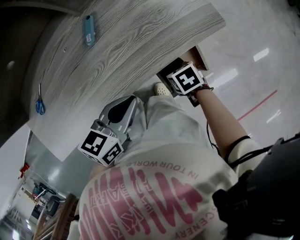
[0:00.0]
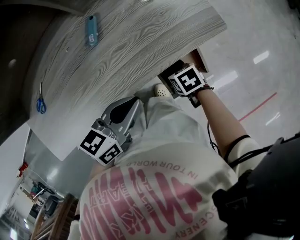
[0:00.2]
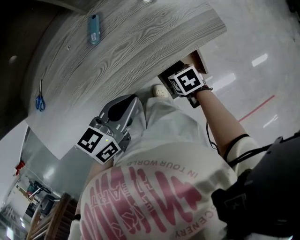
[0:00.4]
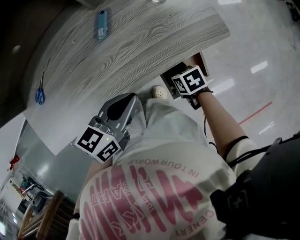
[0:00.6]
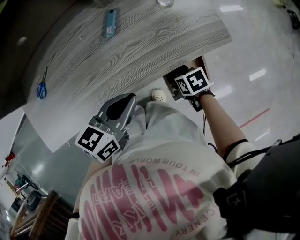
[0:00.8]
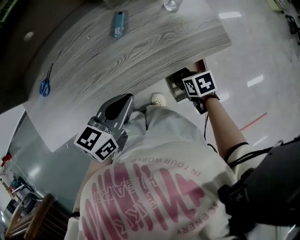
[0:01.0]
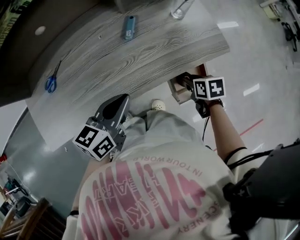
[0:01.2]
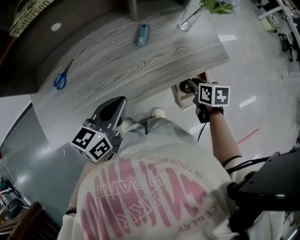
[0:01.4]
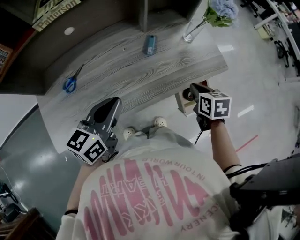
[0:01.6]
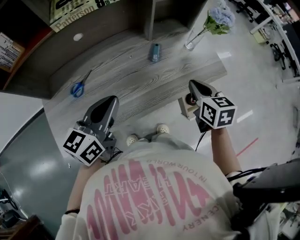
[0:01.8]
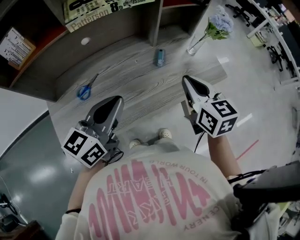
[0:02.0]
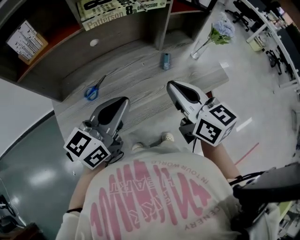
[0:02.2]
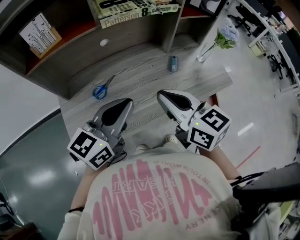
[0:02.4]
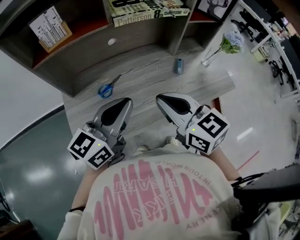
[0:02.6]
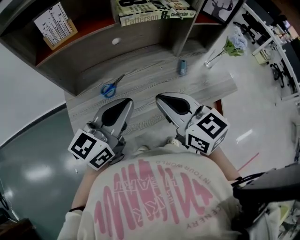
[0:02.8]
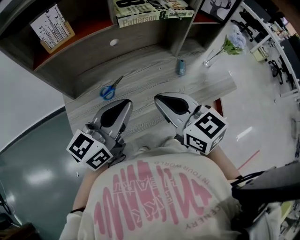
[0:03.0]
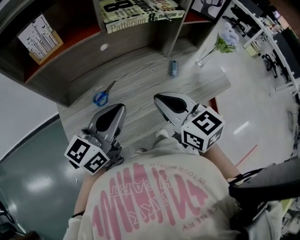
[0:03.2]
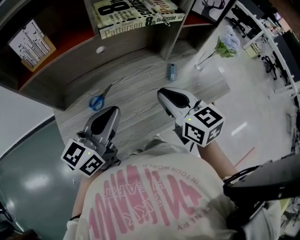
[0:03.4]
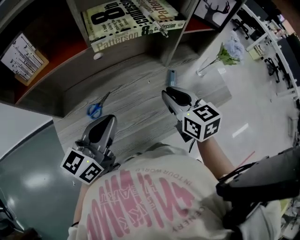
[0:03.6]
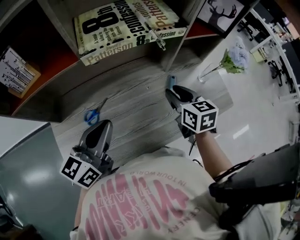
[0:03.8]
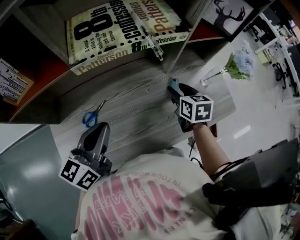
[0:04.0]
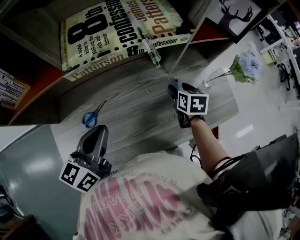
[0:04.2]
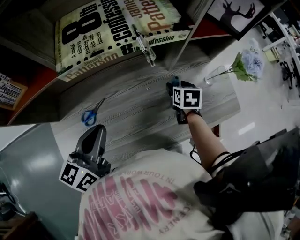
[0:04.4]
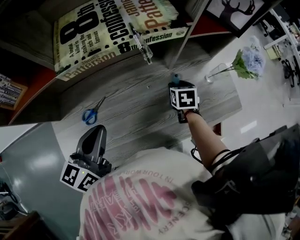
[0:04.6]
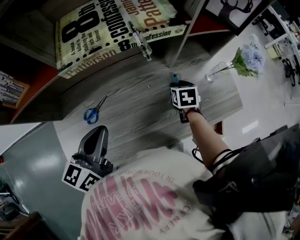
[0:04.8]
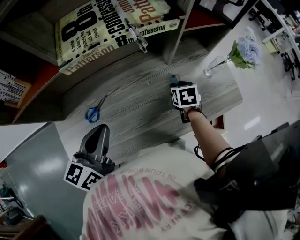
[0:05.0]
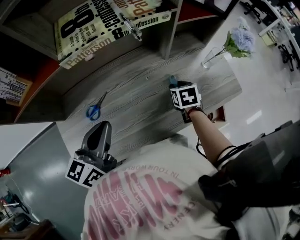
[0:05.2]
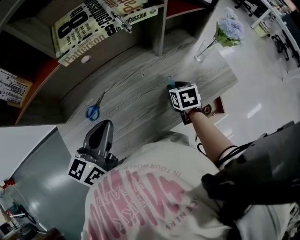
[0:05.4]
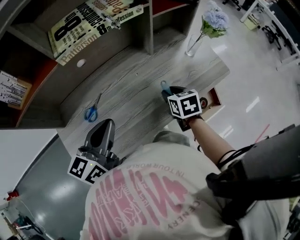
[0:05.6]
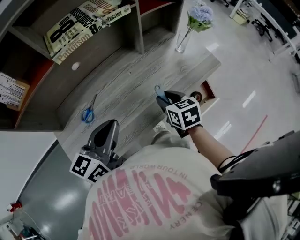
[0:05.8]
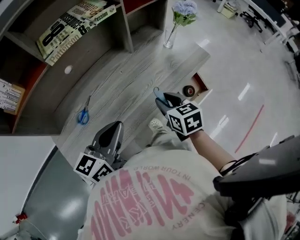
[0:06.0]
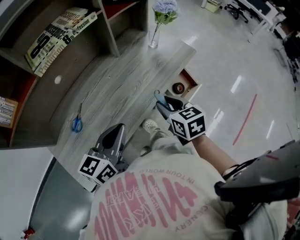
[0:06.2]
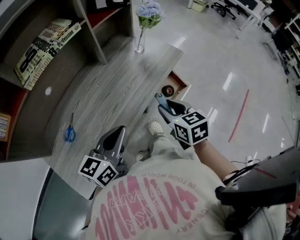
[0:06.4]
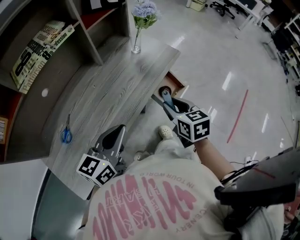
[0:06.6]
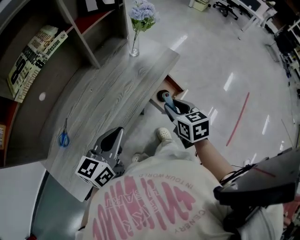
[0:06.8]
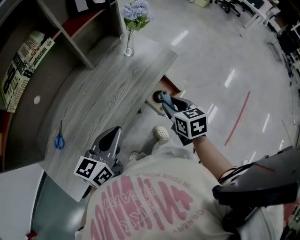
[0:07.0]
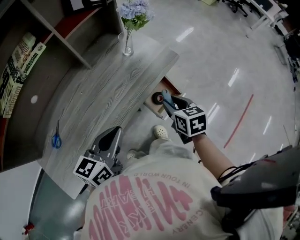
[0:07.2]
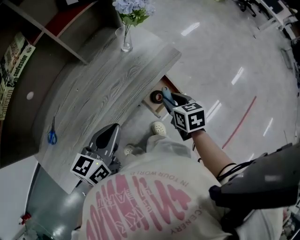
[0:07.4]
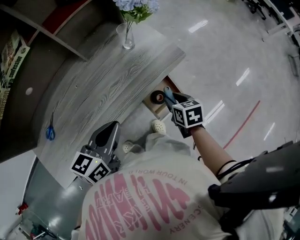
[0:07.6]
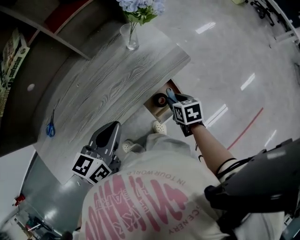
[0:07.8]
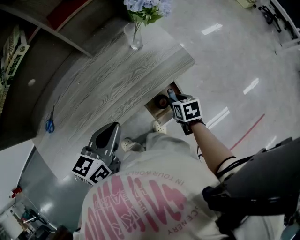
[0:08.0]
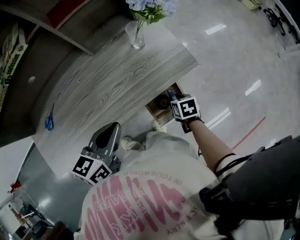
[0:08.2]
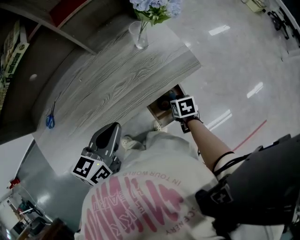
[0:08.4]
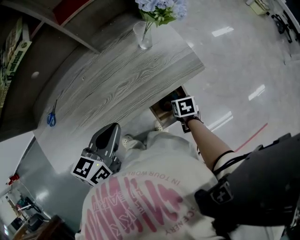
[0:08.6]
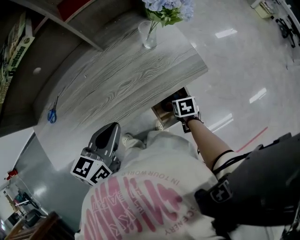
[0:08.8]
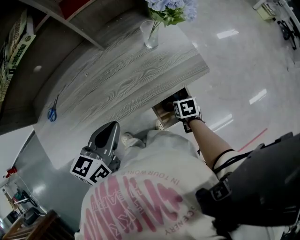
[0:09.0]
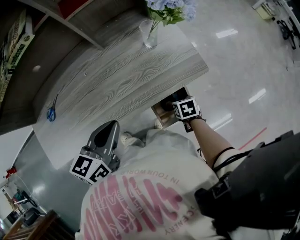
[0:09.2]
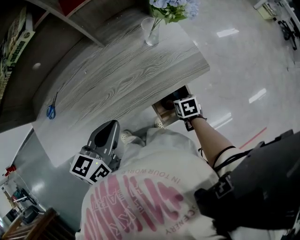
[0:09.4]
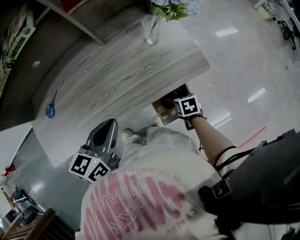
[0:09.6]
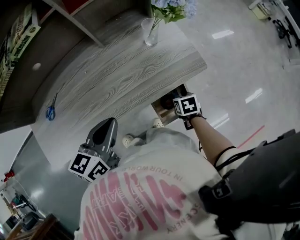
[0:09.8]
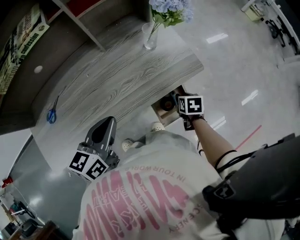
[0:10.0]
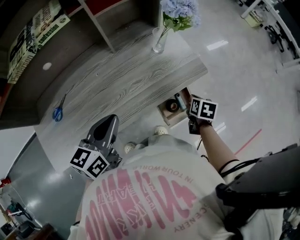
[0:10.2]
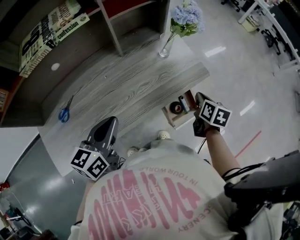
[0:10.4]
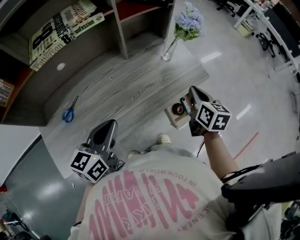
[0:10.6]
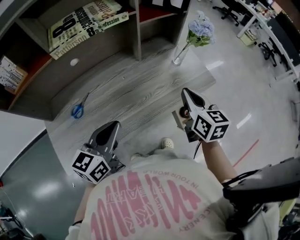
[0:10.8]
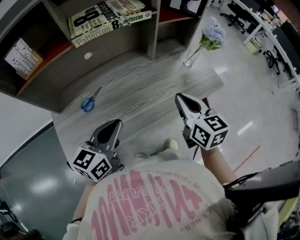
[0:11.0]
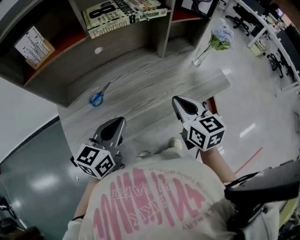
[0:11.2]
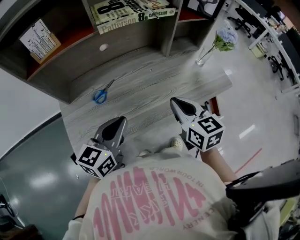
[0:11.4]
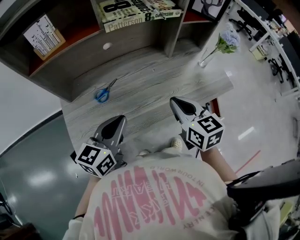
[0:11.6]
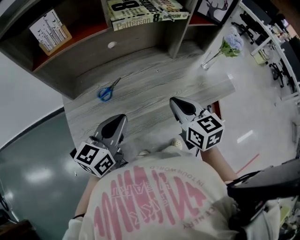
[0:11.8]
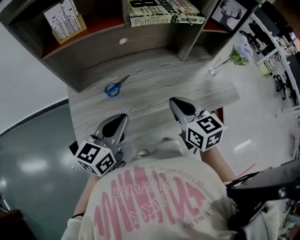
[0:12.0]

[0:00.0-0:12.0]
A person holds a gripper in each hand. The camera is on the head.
0:00.0 to 0:01.6: The right gripper heads upward, covering about 20 cm, changes its angle by about 30 degrees, and closes up. Meanwhile the left gripper travels to the left and upward by about 25 cm, and swivels some 30 degrees.
0:01.6 to 0:03.0: The right gripper moves to the left and upward, approximately 40 cm, and angles its fingers upward, by about 30 degrees; the left gripper goes some 20 cm to the left and upward.
0:03.0 to 0:04.4: The right gripper is displaced forward, downward and to the right by about 40 cm, points its fingers about 40 degrees further downward, and opens up. Meanwhile the left gripper is displaced forward and downward by some 15 cm, and rotates approximately 20 degrees.
0:04.4 to 0:06.0: The left gripper is displaced backward and to the right by approximately 15 cm, and swivels roughly 30 degrees. Meanwhile the right gripper travels backward by roughly 25 cm, and closes up.
0:06.0 to 0:07.6: The right gripper goes about 25 cm to the right and downward; the left gripper heads to the right and forward, covering approximately 20 cm.
0:07.6 to 0:09.0: The right gripper is displaced downward by roughly 15 cm, and changes its angle by approximately 20 degrees.
0:09.0 to 0:10.4: The right gripper goes roughly 20 cm upward, turns by about 40 degrees, and closes up. Meanwhile the left gripper moves to the left, about 10 cm.
0:10.4 to 0:12.0: The right gripper heads to the left, covering about 40 cm, and swivels about 50 degrees; the left gripper shifts roughly 25 cm to the left and backward.

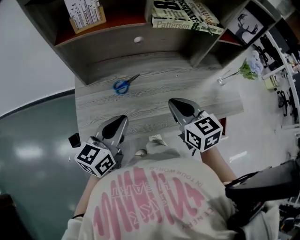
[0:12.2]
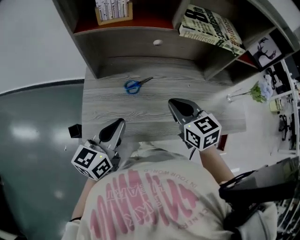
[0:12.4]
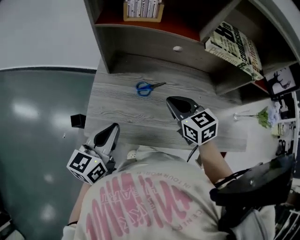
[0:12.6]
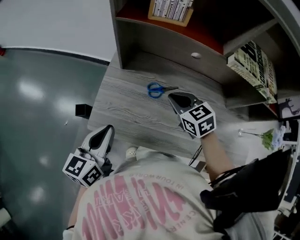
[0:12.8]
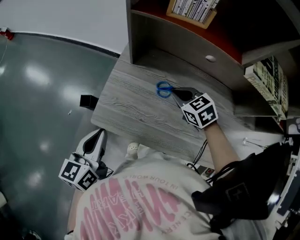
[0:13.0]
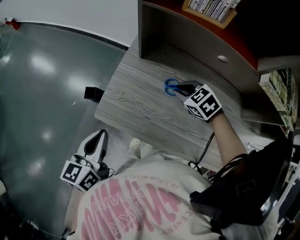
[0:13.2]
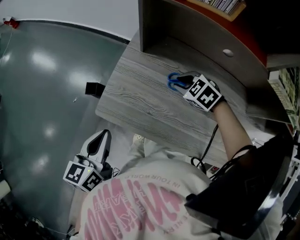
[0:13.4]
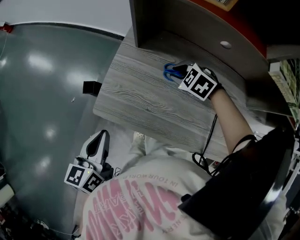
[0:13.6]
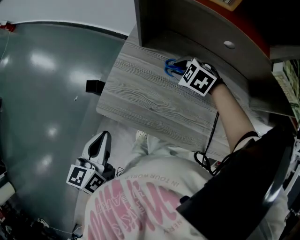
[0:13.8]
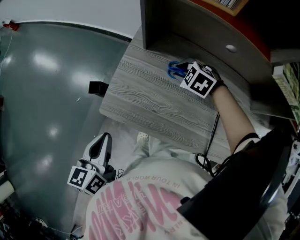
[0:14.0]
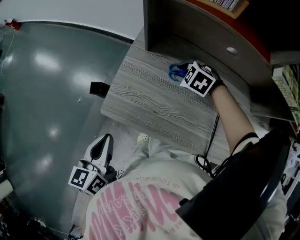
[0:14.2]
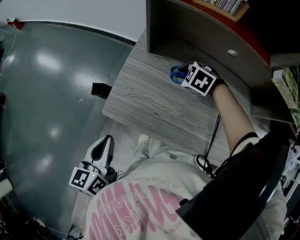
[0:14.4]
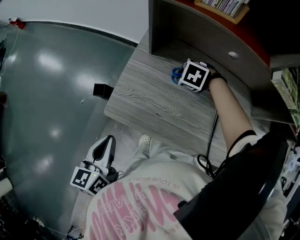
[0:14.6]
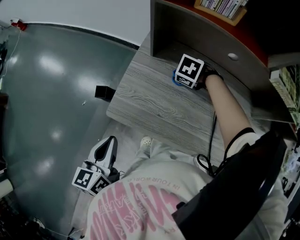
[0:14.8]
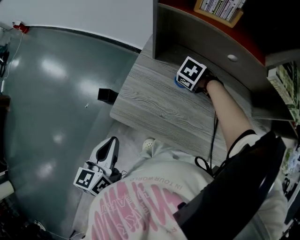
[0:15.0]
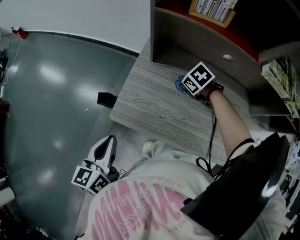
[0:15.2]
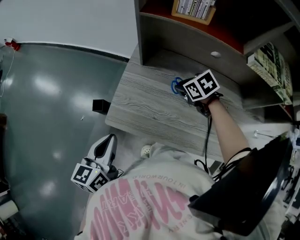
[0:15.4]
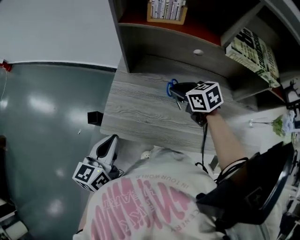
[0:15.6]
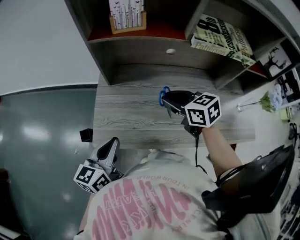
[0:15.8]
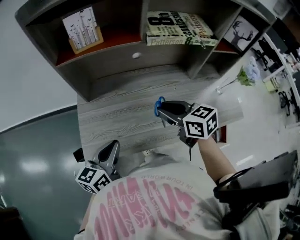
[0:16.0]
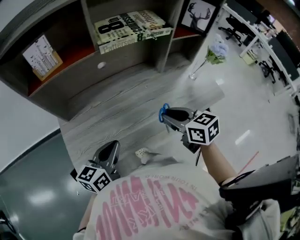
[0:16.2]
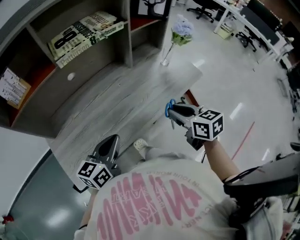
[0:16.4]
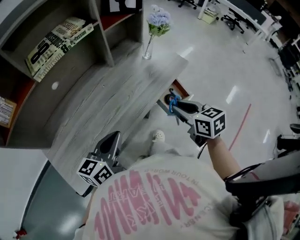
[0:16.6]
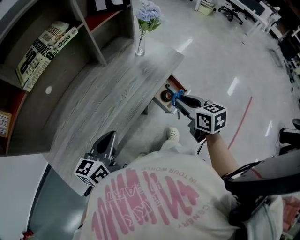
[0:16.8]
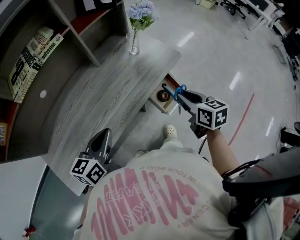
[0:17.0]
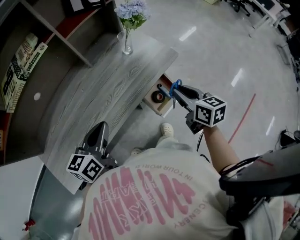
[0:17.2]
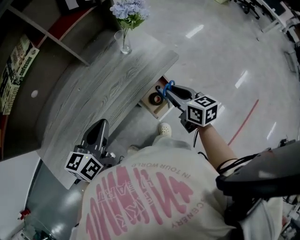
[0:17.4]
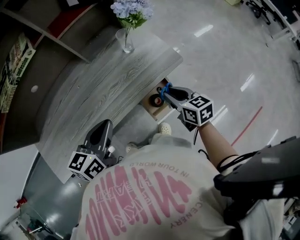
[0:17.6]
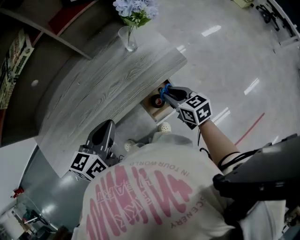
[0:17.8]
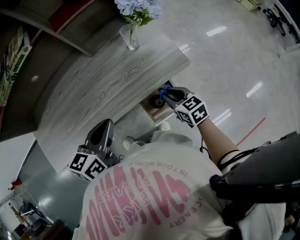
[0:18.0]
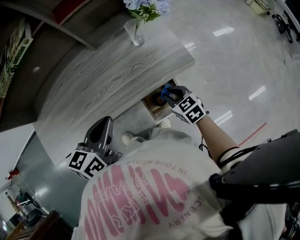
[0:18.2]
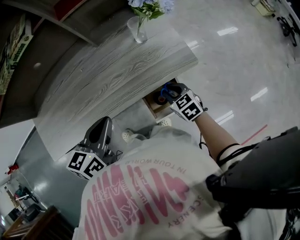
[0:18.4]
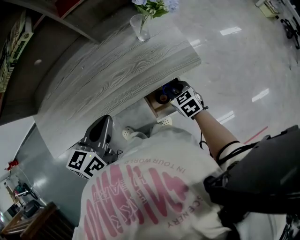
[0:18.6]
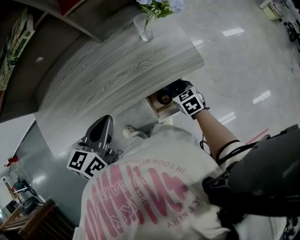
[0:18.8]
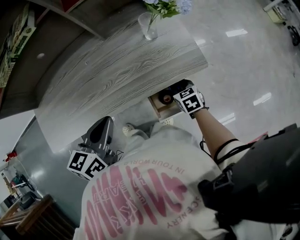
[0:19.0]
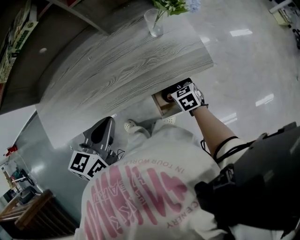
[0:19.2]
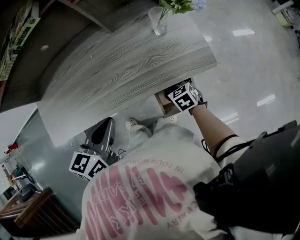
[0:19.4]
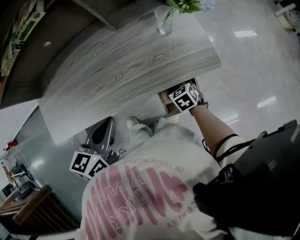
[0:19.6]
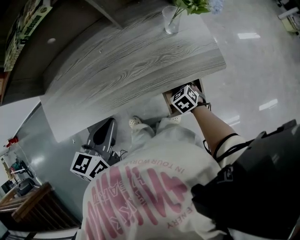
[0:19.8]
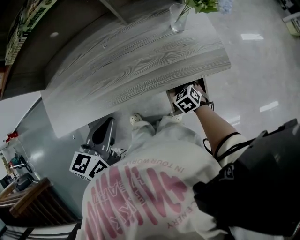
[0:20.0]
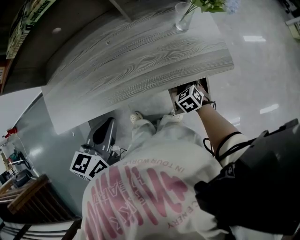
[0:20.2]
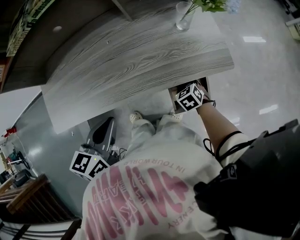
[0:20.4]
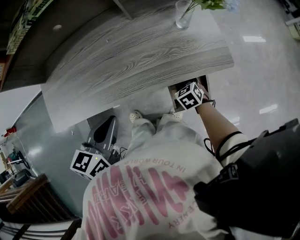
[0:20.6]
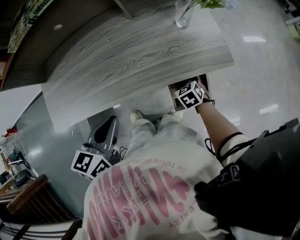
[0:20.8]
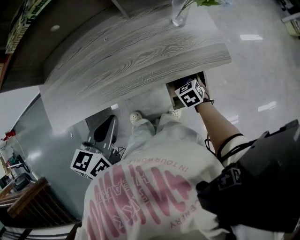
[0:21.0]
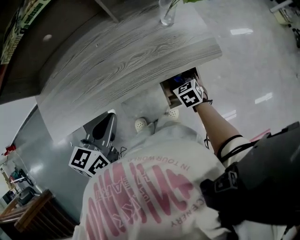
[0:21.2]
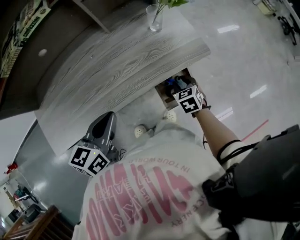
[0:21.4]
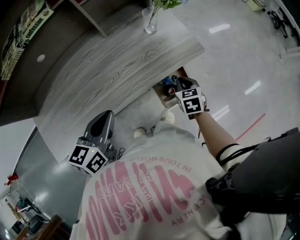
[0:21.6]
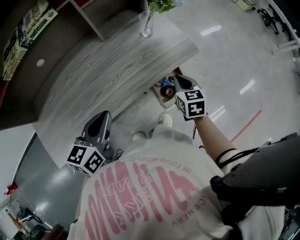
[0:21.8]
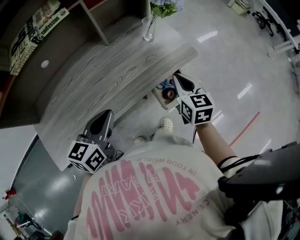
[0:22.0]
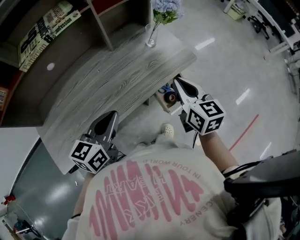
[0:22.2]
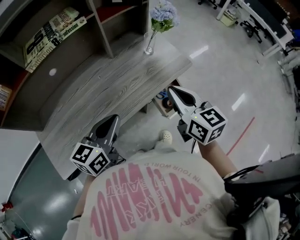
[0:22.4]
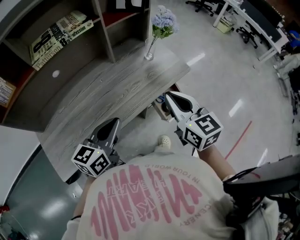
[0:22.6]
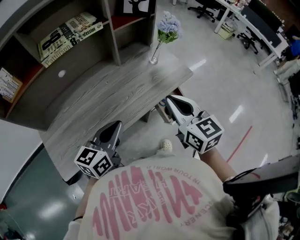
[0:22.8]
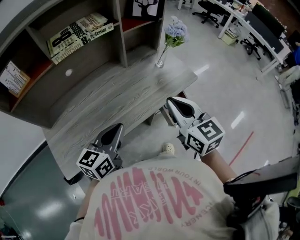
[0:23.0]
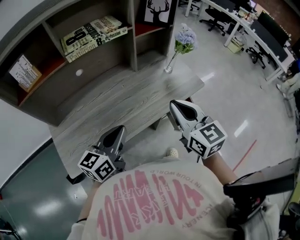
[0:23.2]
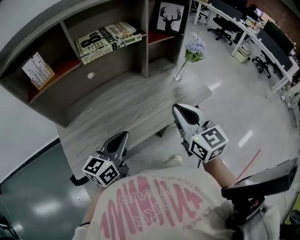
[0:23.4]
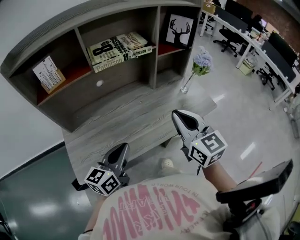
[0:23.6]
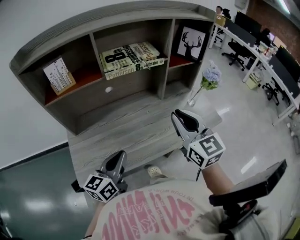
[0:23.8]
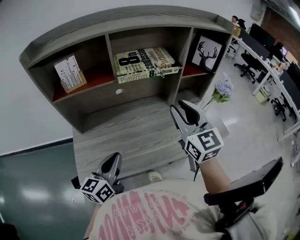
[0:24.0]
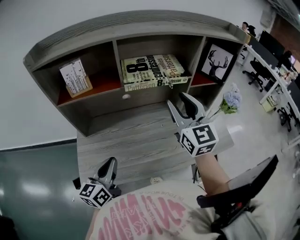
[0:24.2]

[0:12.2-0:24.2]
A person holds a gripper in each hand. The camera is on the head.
0:12.2 to 0:13.8: The left gripper shifts by about 20 cm, and rotates approximately 50 degrees; the right gripper shifts by some 30 cm, tilts its fingers some 40 degrees downward, and opens its fingers.
0:13.8 to 0:15.2: The right gripper rotates roughly 30 degrees.
0:15.2 to 0:16.6: The right gripper changes place by about 60 cm, and tilts its fingers roughly 40 degrees upward, while the left gripper moves about 35 cm, and rotates some 80 degrees.
0:16.6 to 0:18.2: The right gripper goes some 20 cm downward, and turns by about 30 degrees. Meanwhile the left gripper ends up roughly 20 cm from where it was, and changes its angle by about 20 degrees.
0:18.2 to 0:19.8: The right gripper goes some 10 cm downward and to the left, and changes its angle by roughly 20 degrees. Meanwhile the left gripper is displaced to the left by some 5 cm.
0:19.8 to 0:21.2: The right gripper opens up.
0:21.2 to 0:22.6: The right gripper moves upward, approximately 35 cm, points its fingers approximately 40 degrees further upward, and closes up, while the left gripper moves upward, about 5 cm, and changes its angle by approximately 30 degrees.
0:22.6 to 0:24.2: The left gripper moves approximately 25 cm, and changes its angle by some 40 degrees; the right gripper ends up some 30 cm from where it was, turns by roughly 30 degrees, and opens.
